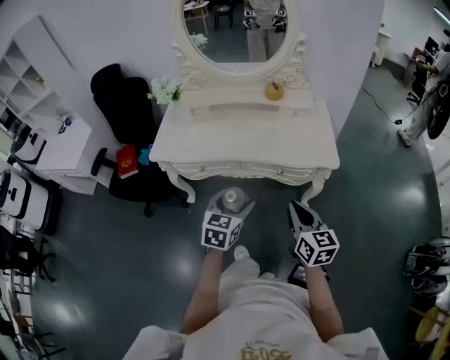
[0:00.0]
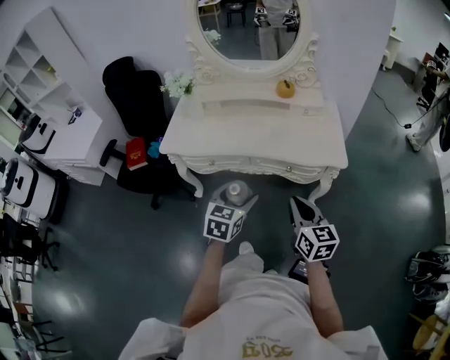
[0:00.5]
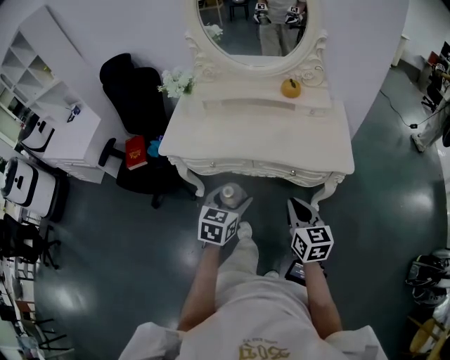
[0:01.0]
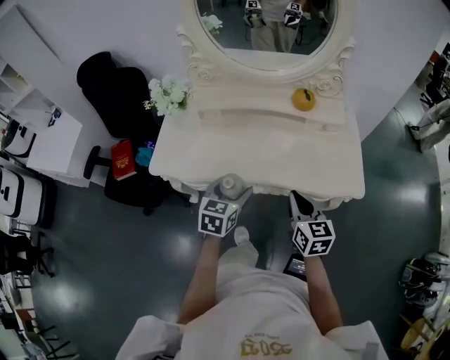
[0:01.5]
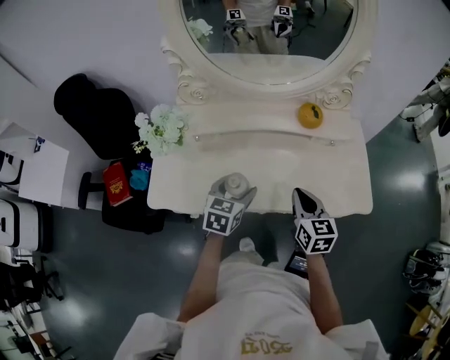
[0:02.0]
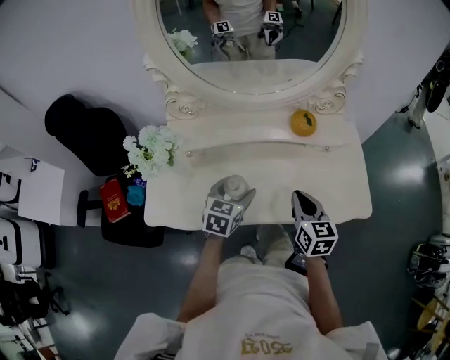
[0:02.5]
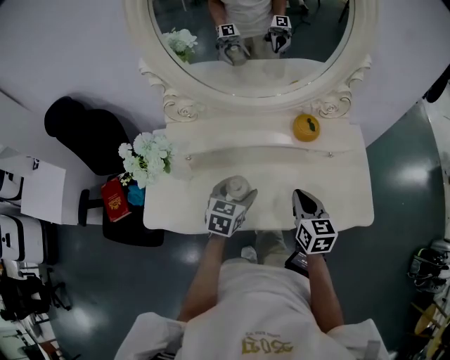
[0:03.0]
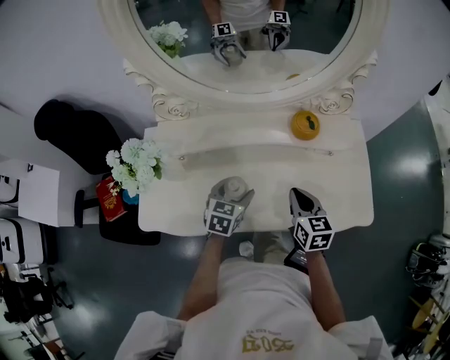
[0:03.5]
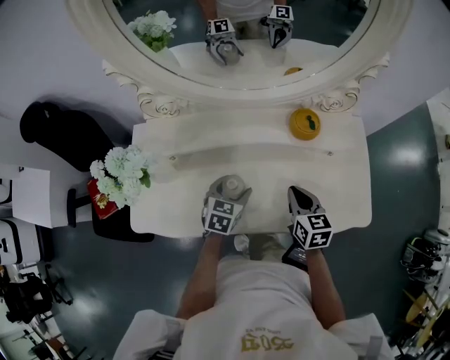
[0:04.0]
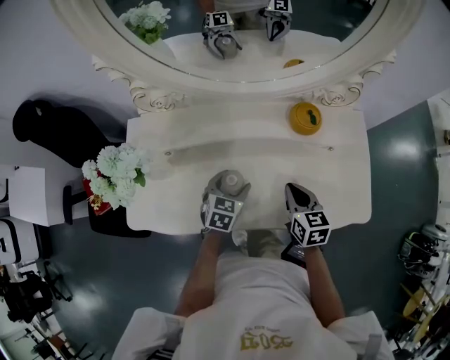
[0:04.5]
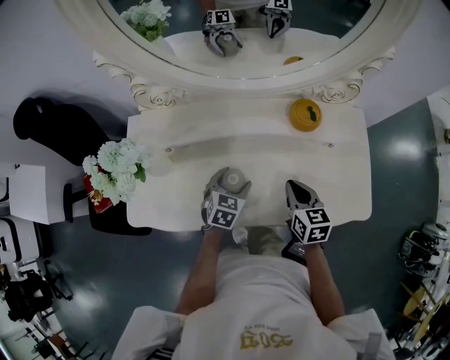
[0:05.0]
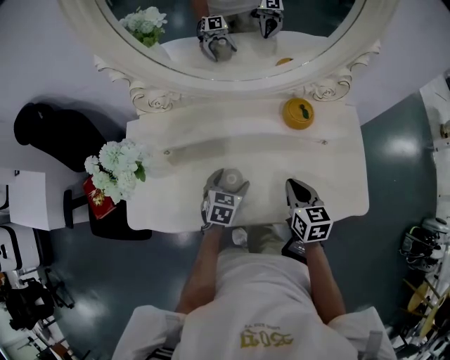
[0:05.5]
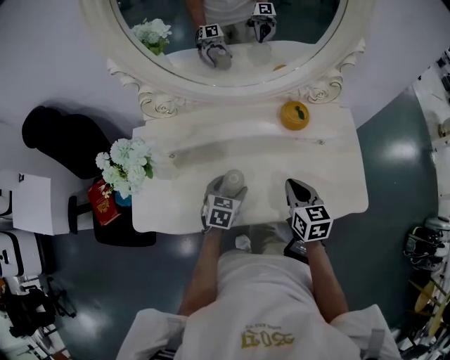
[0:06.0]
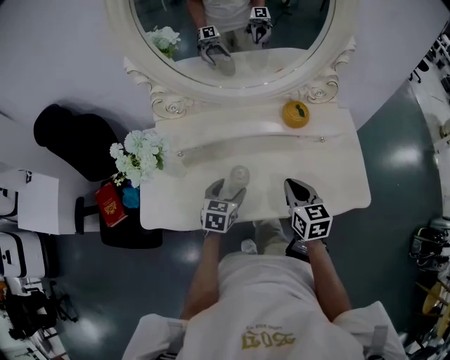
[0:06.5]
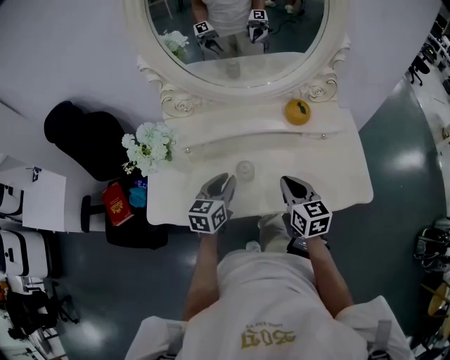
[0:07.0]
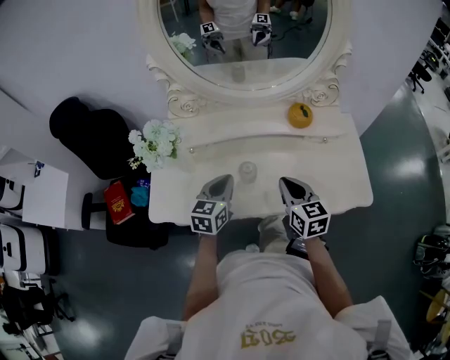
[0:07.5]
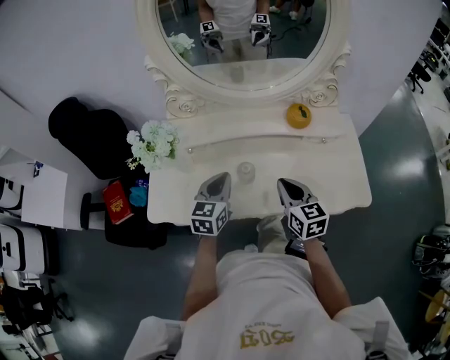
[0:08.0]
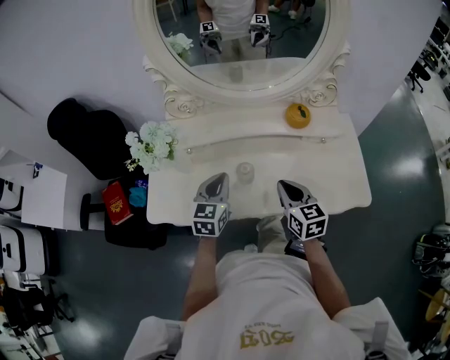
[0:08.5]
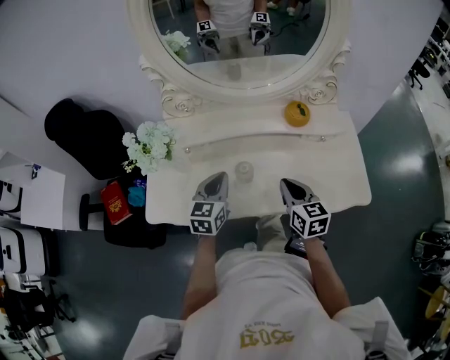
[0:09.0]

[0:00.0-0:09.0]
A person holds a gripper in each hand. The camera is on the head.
0:00.0 to 0:02.0: Both grippers move forward, roughly 35 cm.
0:02.0 to 0:04.5: The left gripper heads downward and forward, covering approximately 15 cm. Meanwhile the right gripper goes roughly 15 cm forward and downward.
0:04.5 to 0:07.0: The right gripper travels upward and backward by approximately 10 cm. Meanwhile the left gripper shifts roughly 15 cm upward, backward and to the left, swivels some 20 degrees, and closes.
0:07.0 to 0:09.0: The grippers move only a little.

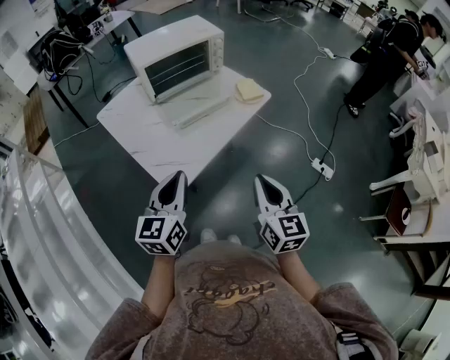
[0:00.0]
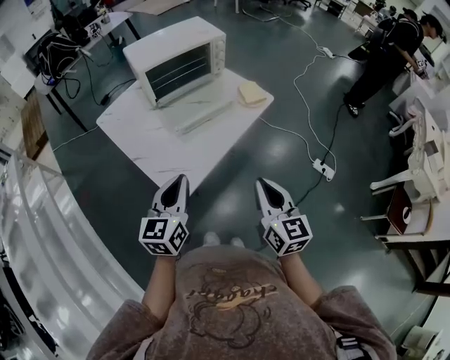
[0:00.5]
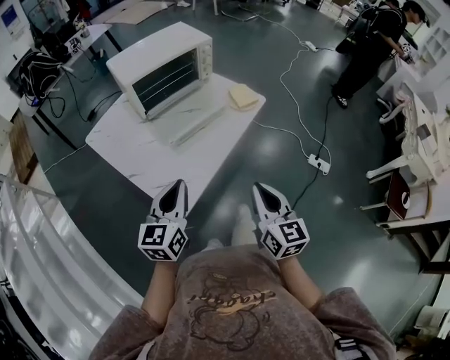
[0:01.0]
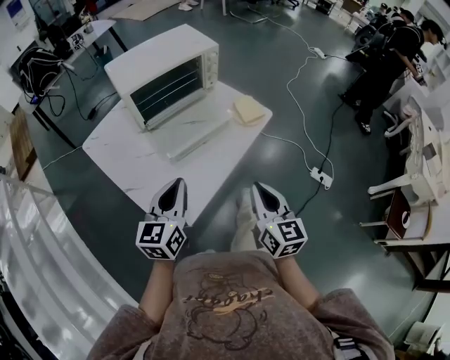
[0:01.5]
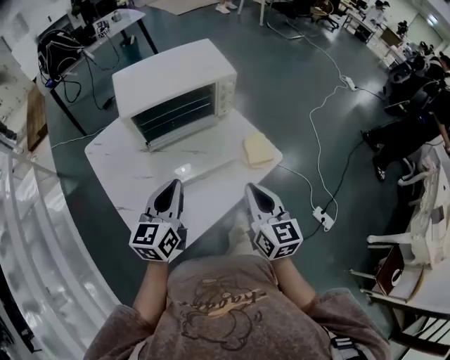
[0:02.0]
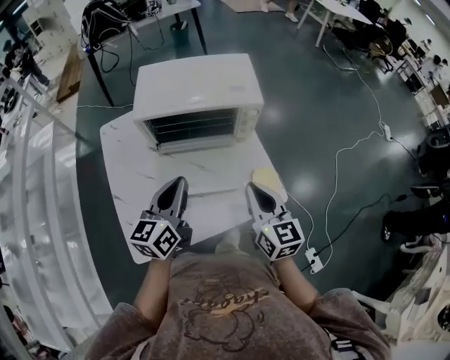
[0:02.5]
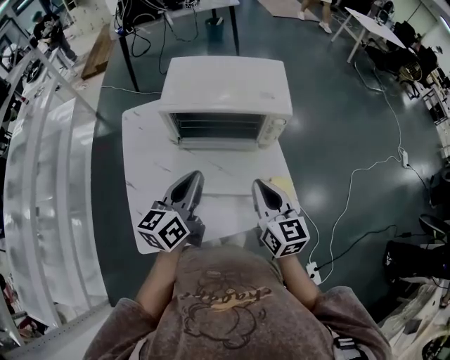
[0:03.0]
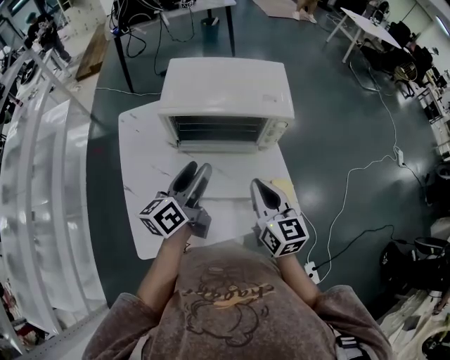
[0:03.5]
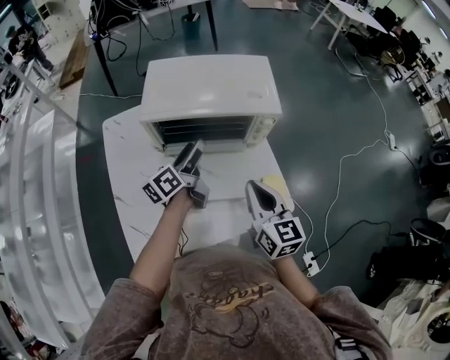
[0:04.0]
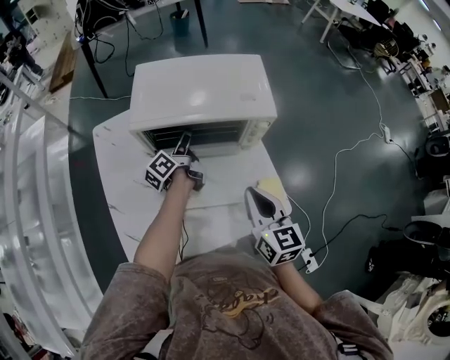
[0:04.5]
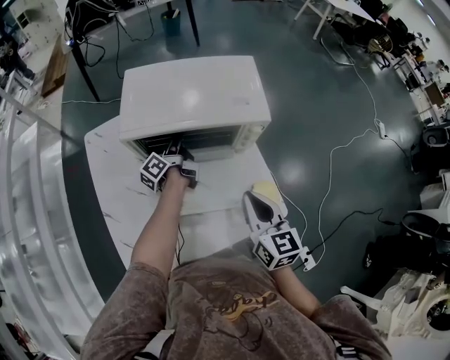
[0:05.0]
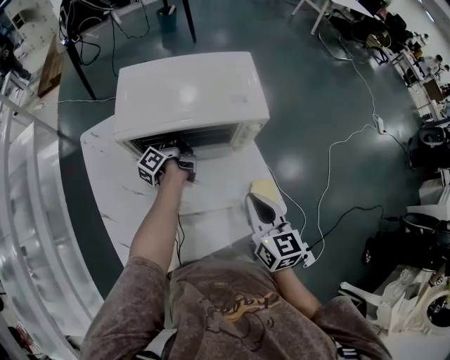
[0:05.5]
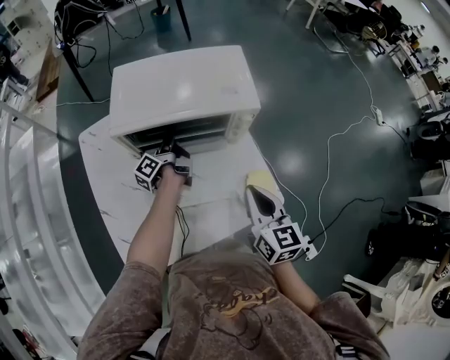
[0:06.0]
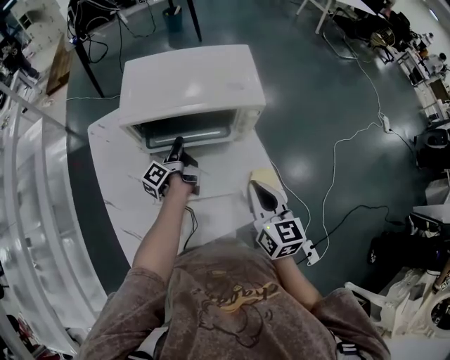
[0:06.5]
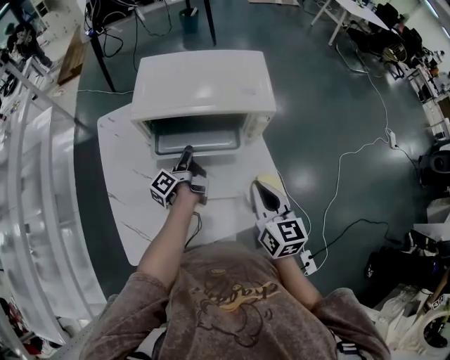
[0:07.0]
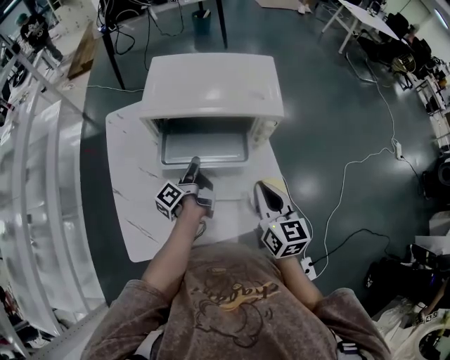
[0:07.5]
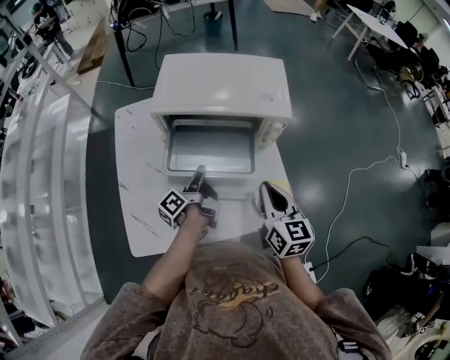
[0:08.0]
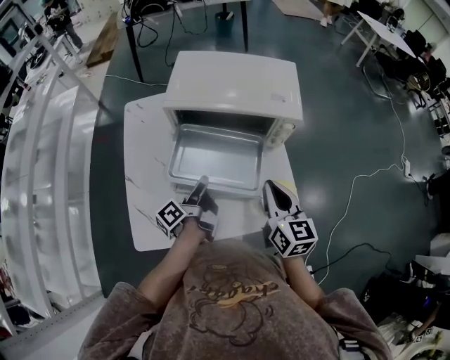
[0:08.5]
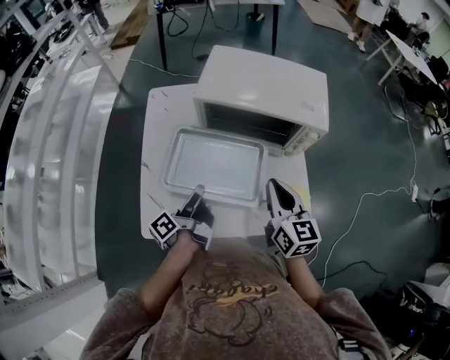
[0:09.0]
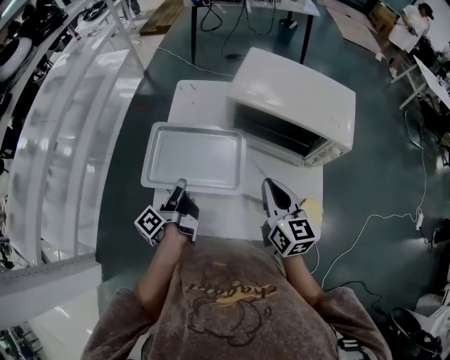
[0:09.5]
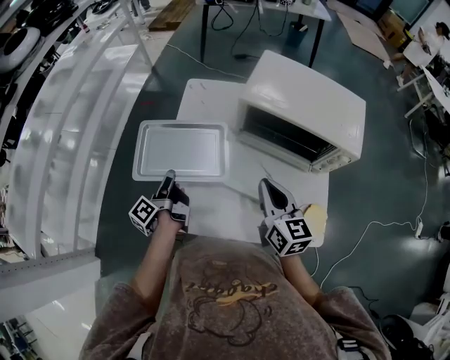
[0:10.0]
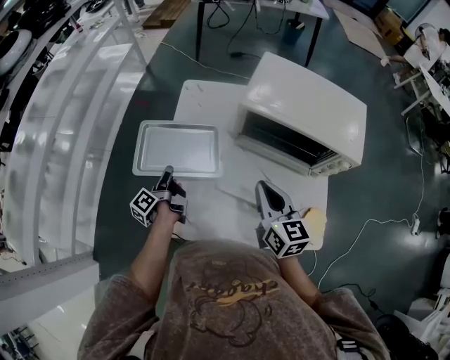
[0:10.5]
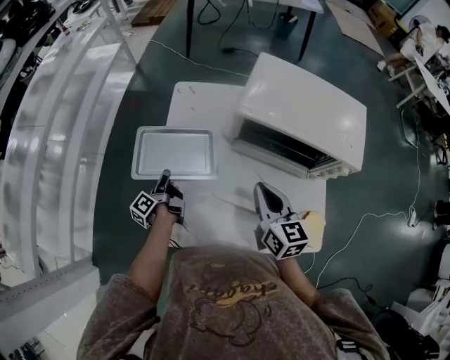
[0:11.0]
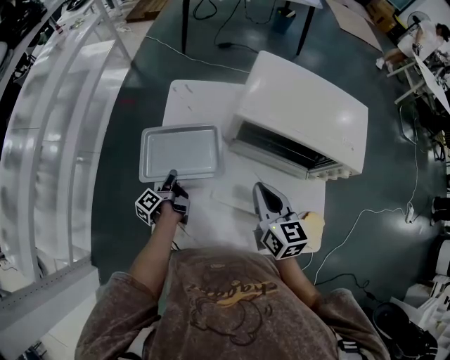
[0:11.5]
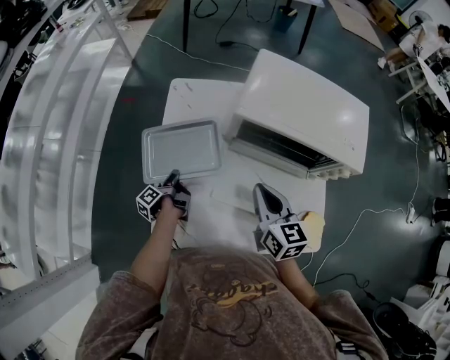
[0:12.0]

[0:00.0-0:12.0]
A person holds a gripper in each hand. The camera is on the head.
0:00.0 to 0:02.0: The right gripper changes place by approximately 30 cm.
0:02.0 to 0:04.0: The right gripper shifts by approximately 15 cm, and swivels approximately 20 degrees.
0:04.0 to 0:06.0: The right gripper shifts by some 5 cm.
0:08.0 to 0:10.0: The right gripper changes place by some 20 cm, and swivels approximately 20 degrees.
0:10.0 to 0:12.0: The right gripper ends up about 5 cm from where it was.

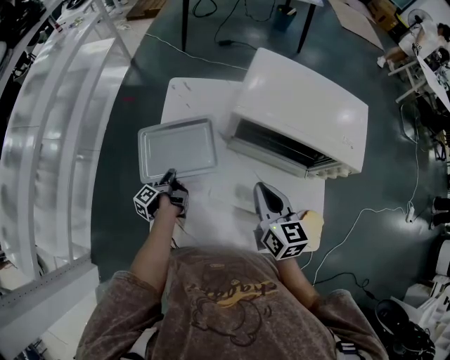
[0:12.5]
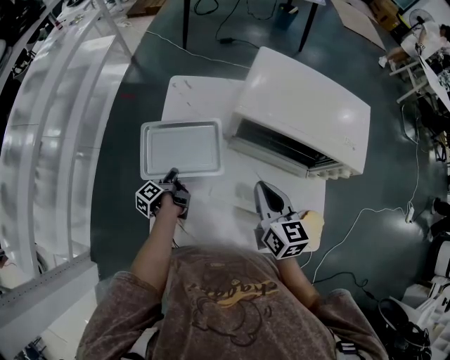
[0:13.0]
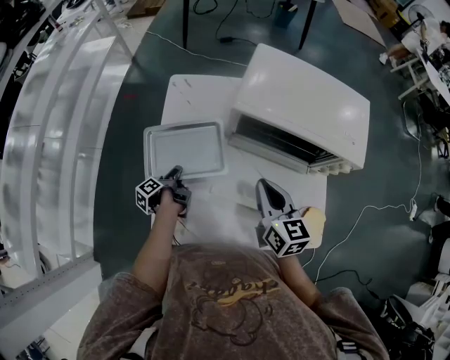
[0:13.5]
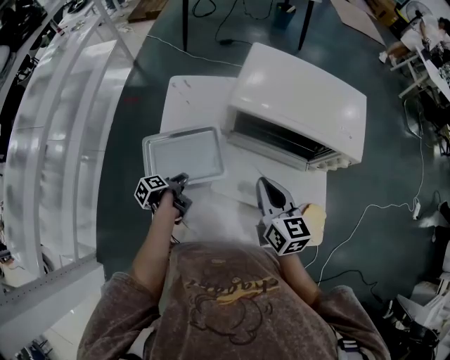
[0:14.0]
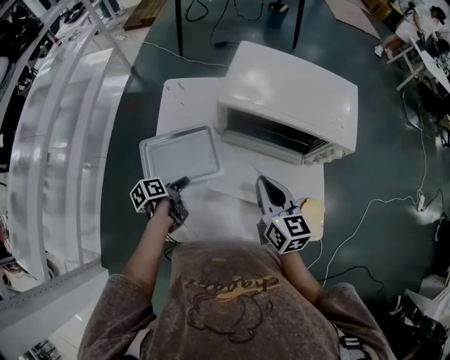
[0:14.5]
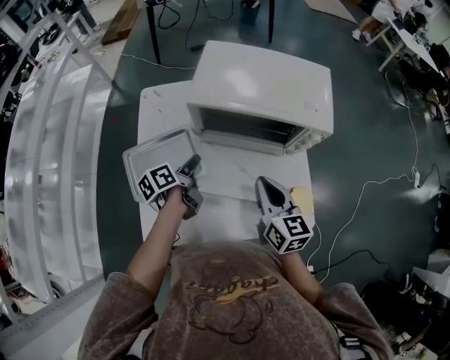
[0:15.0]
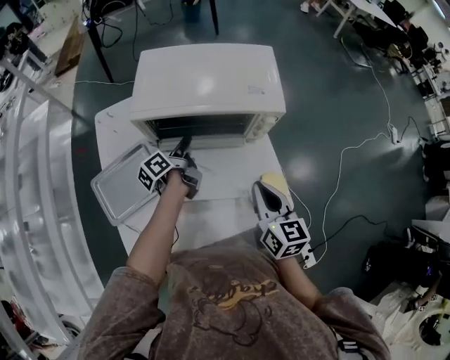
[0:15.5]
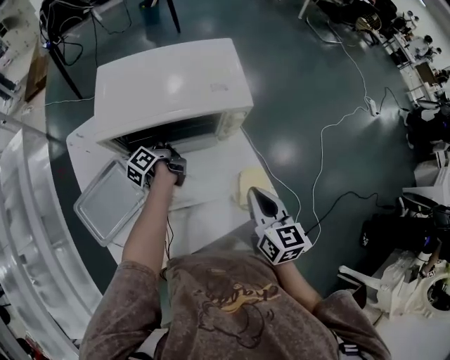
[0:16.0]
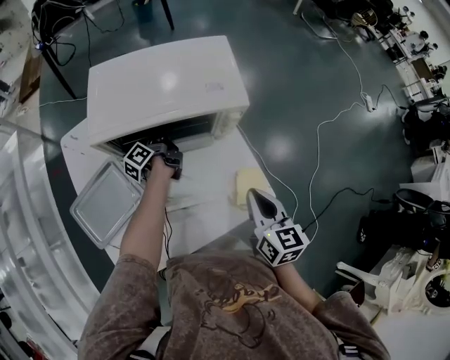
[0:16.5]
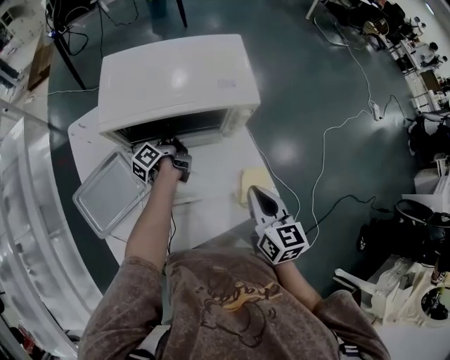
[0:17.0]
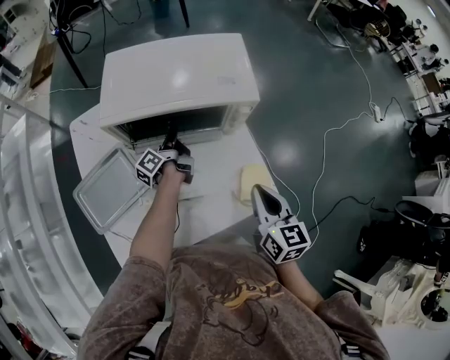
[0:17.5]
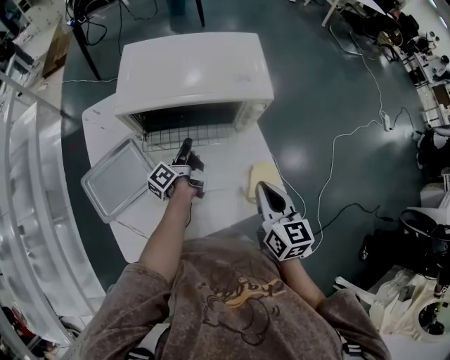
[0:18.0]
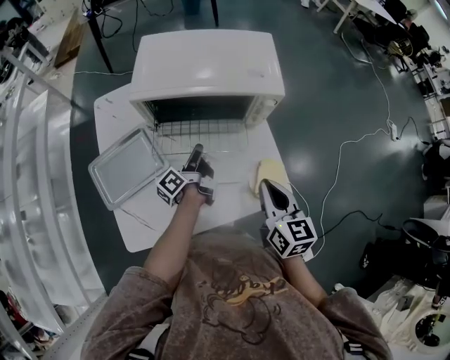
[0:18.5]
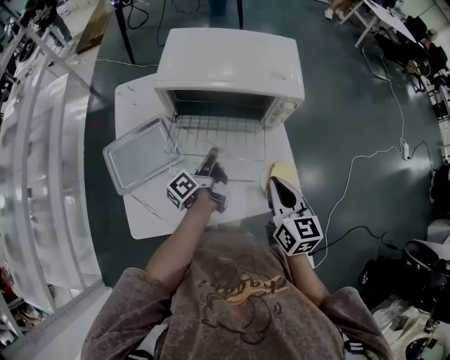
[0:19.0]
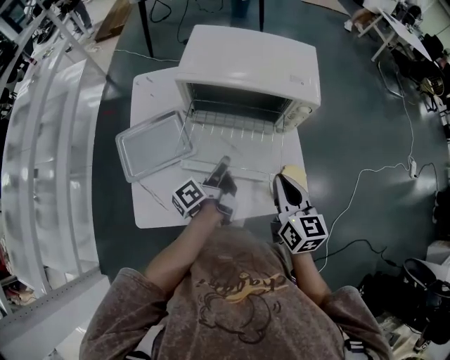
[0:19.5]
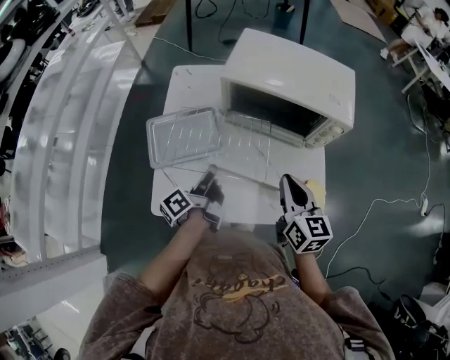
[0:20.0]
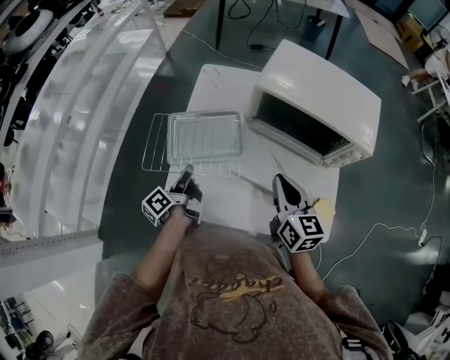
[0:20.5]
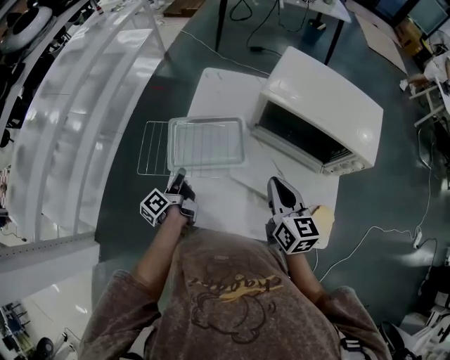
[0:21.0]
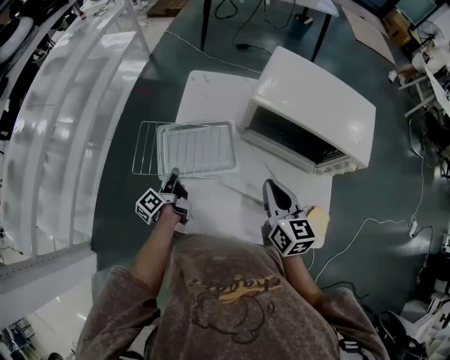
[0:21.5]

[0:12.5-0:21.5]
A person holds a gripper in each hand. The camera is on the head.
0:14.5 to 0:17.0: The right gripper changes place by about 20 cm, and changes its angle by approximately 30 degrees.
0:19.5 to 0:21.5: The right gripper moves approximately 20 cm.
